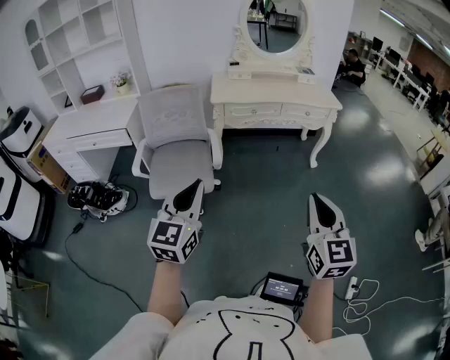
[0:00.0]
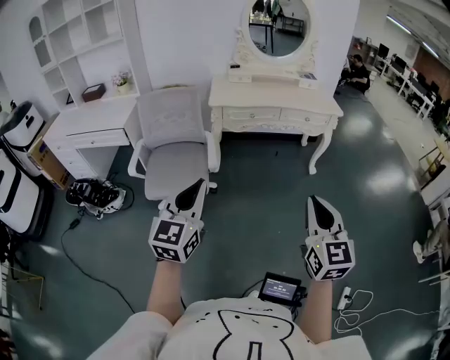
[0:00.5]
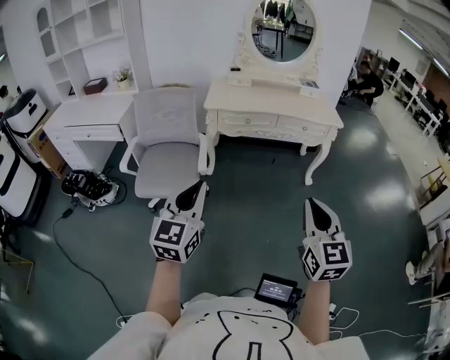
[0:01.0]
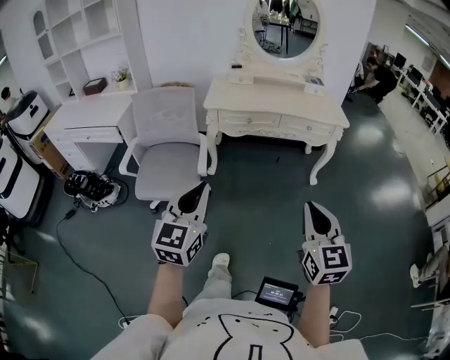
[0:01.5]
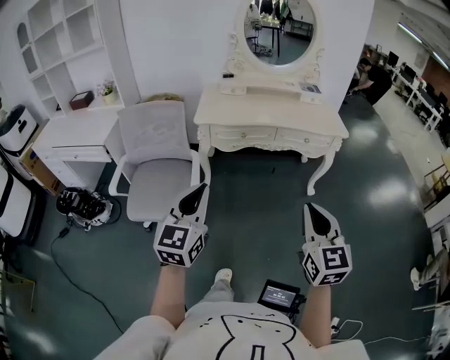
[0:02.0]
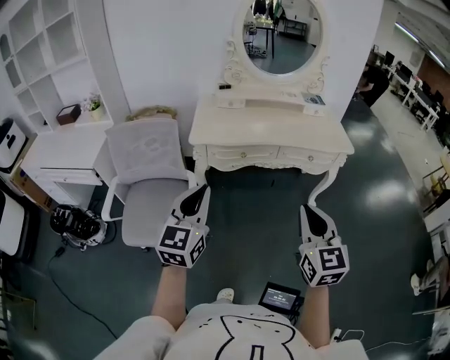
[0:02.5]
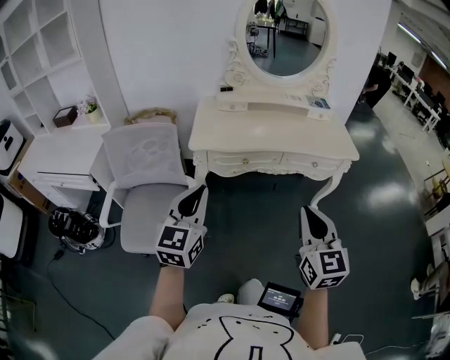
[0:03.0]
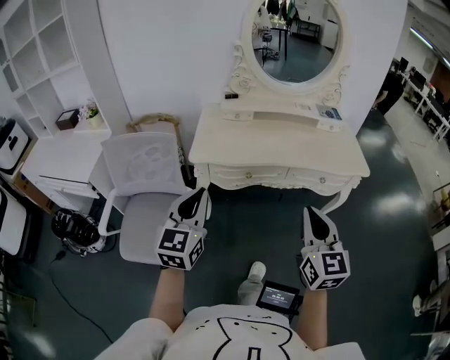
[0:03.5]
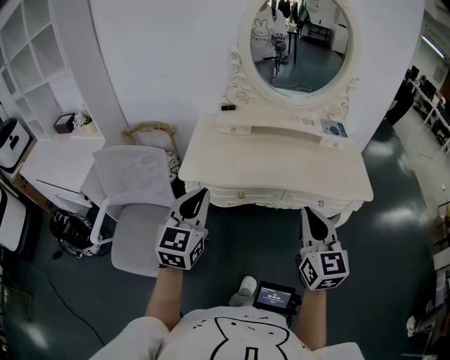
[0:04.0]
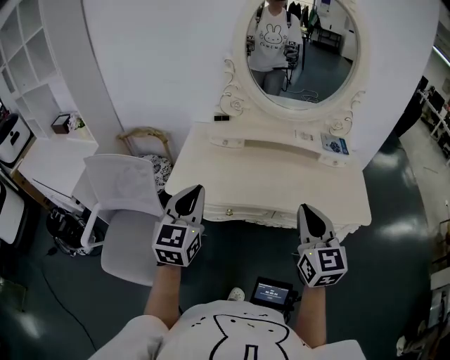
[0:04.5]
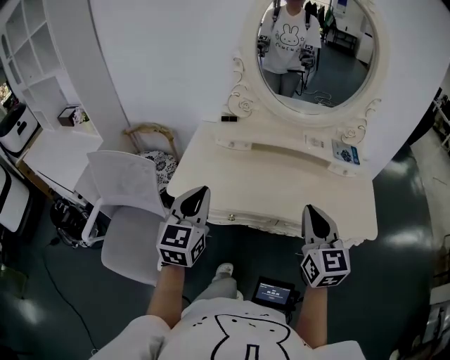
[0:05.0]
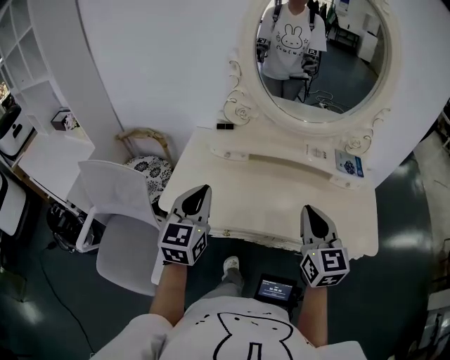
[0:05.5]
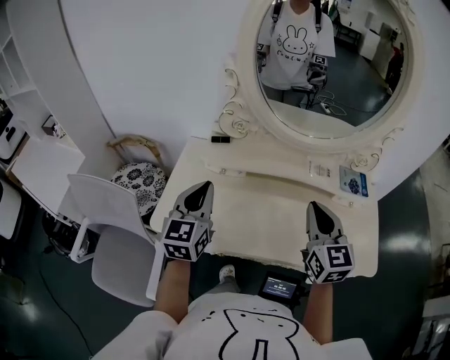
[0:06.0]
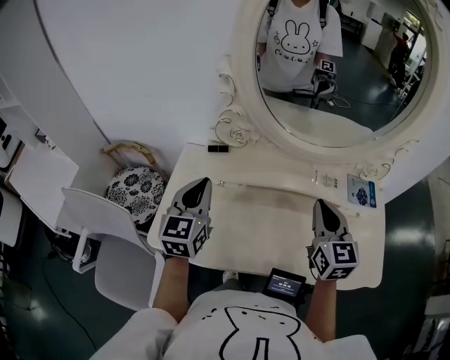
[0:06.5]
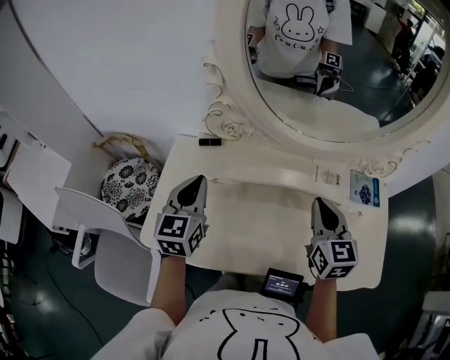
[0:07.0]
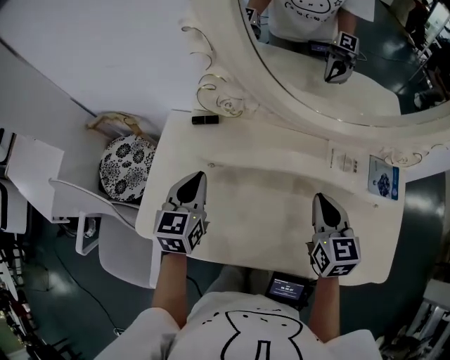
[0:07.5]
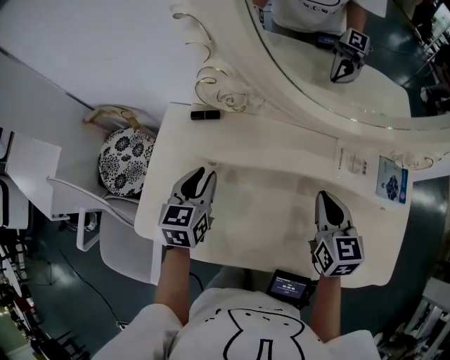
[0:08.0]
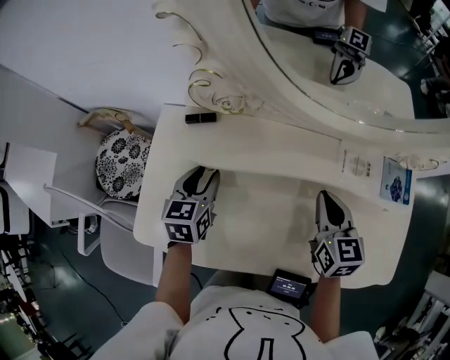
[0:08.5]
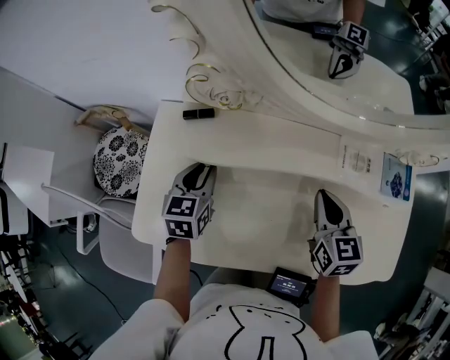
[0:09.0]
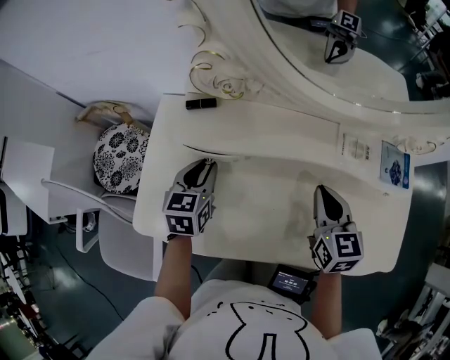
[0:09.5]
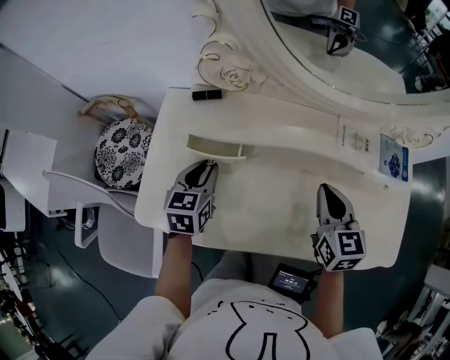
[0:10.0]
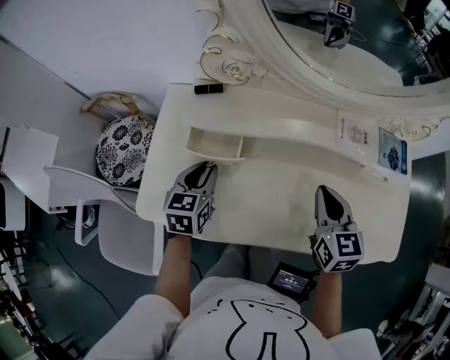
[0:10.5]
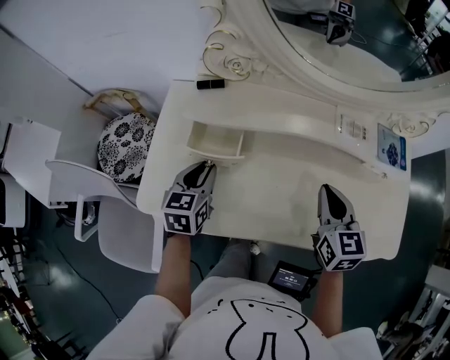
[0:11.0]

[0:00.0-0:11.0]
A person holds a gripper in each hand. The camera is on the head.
0:00.0 to 0:02.0: The two grippers go some 25 cm forward and to the right.
0:02.0 to 0:03.5: The two grippers go some 30 cm forward.
0:03.5 to 0:05.5: The two grippers go approximately 30 cm forward.
0:05.5 to 0:07.5: The grippers both shift forward and downward by roughly 25 cm.
0:07.5 to 0:09.0: The left gripper heads downward, covering some 10 cm, and opens its fingers.
0:09.0 to 0:11.0: Both grippers travel together backward, some 10 cm.

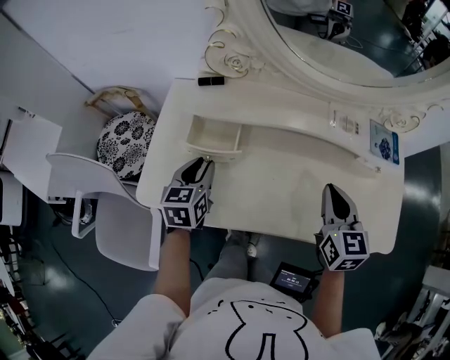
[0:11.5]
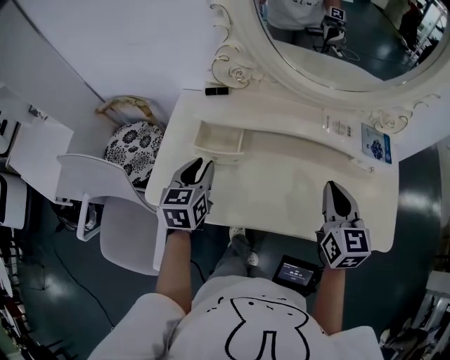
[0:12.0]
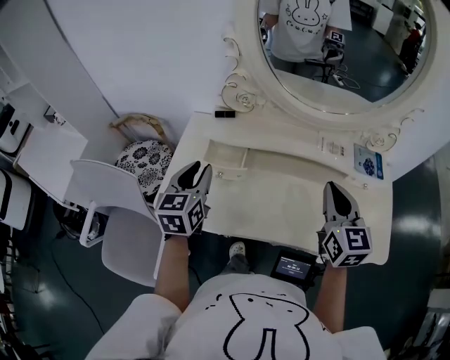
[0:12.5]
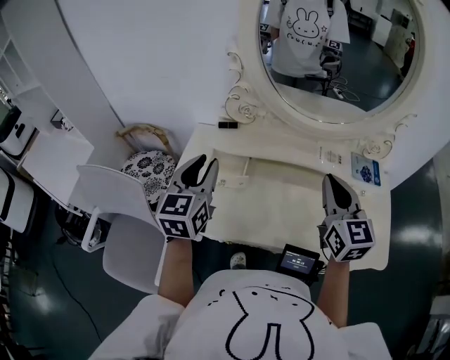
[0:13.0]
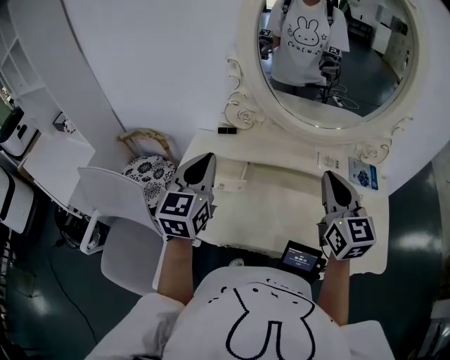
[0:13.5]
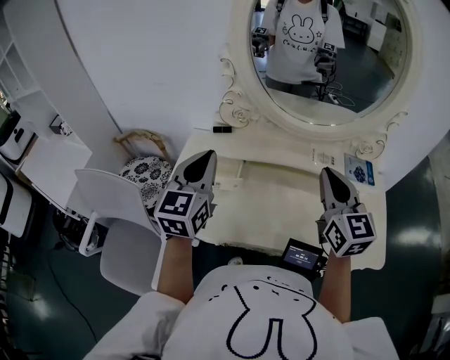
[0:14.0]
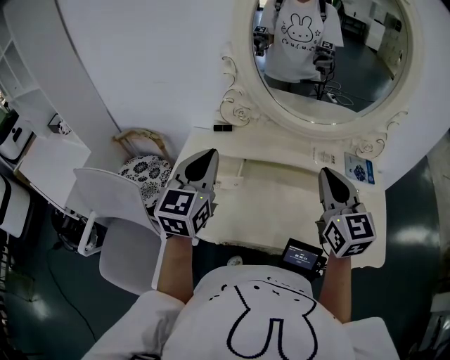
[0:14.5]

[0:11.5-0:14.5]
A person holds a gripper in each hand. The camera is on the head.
0:11.5 to 0:13.0: The two grippers go some 20 cm upward. The left gripper changes its angle by approximately 30 degrees.
0:13.0 to 0:14.5: The left gripper closes its fingers.

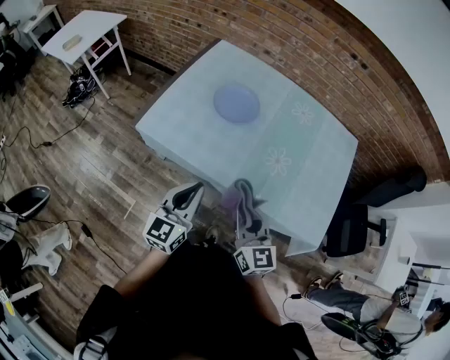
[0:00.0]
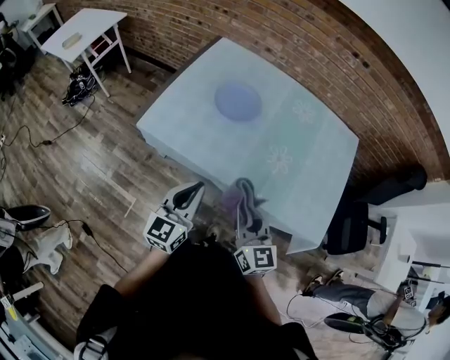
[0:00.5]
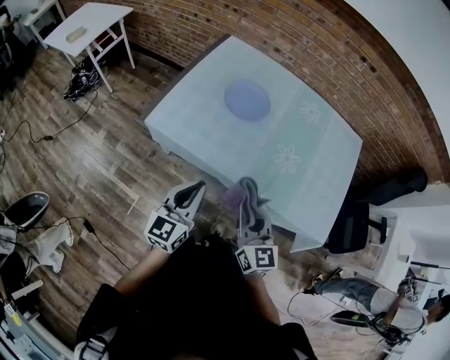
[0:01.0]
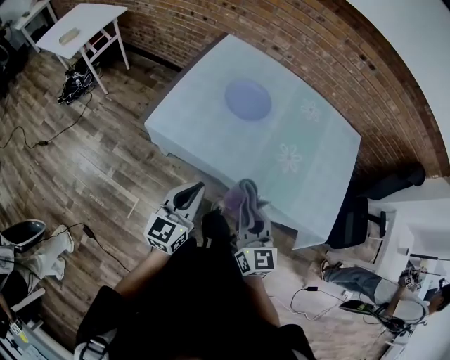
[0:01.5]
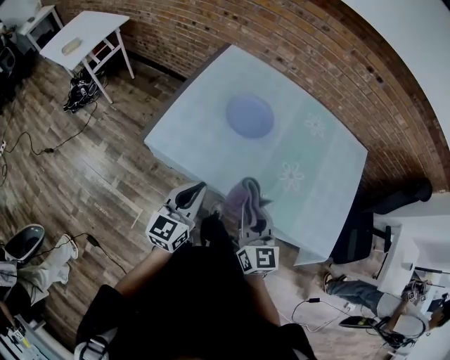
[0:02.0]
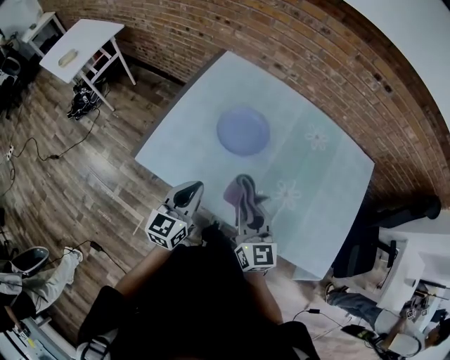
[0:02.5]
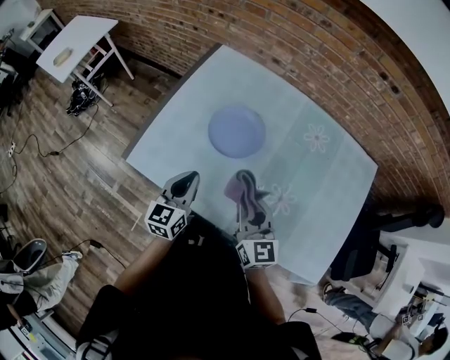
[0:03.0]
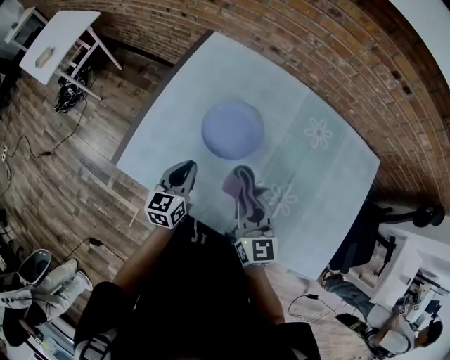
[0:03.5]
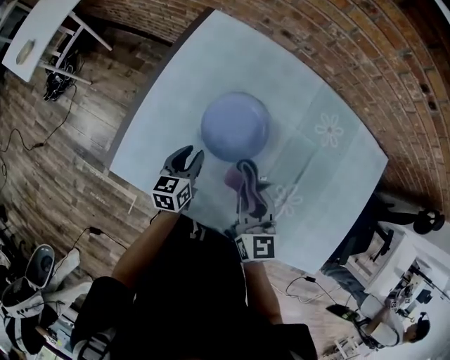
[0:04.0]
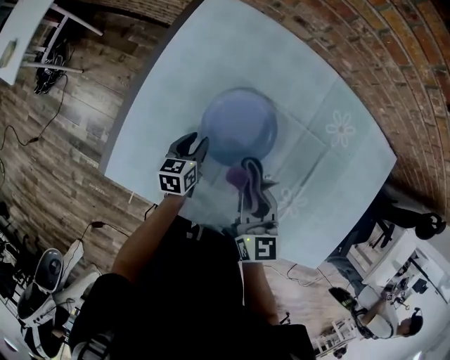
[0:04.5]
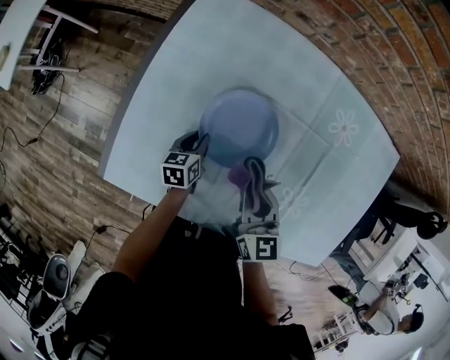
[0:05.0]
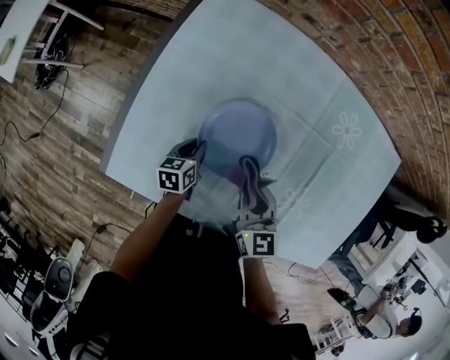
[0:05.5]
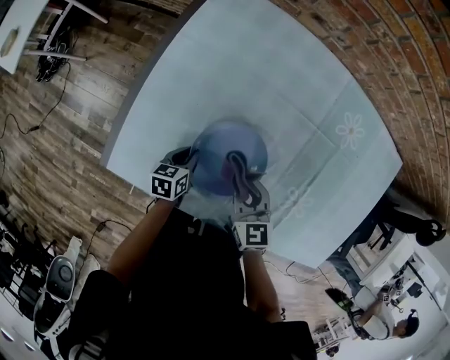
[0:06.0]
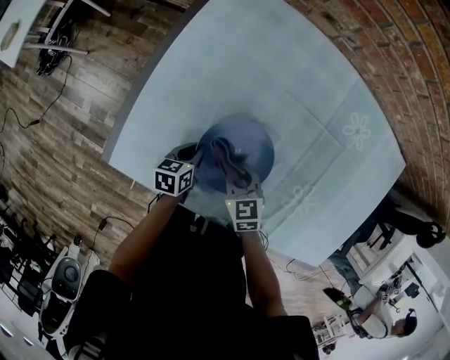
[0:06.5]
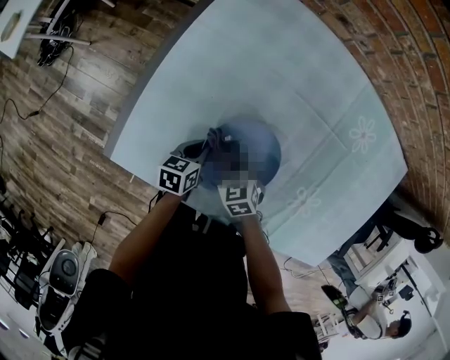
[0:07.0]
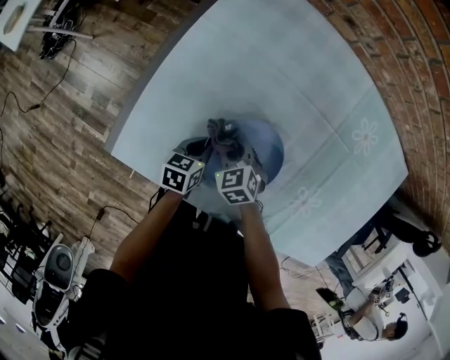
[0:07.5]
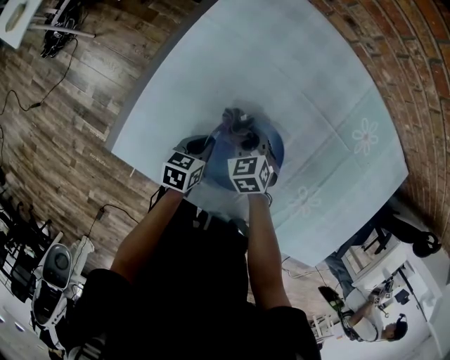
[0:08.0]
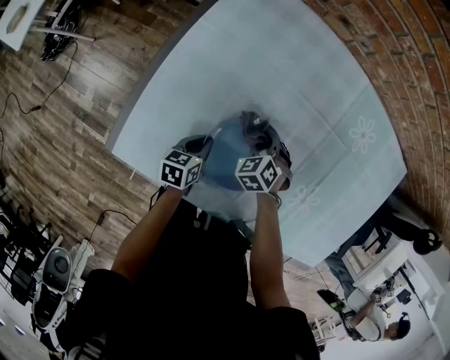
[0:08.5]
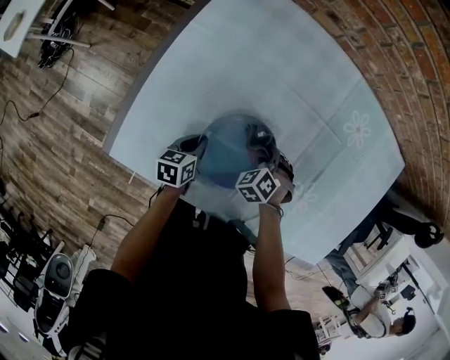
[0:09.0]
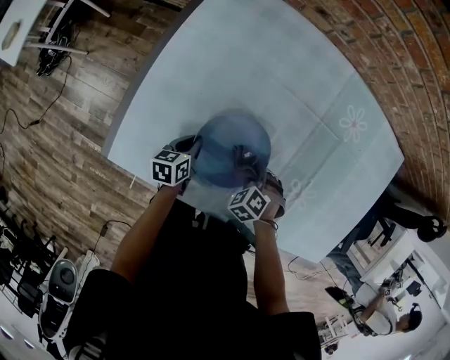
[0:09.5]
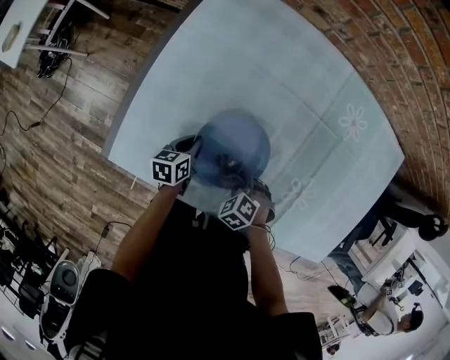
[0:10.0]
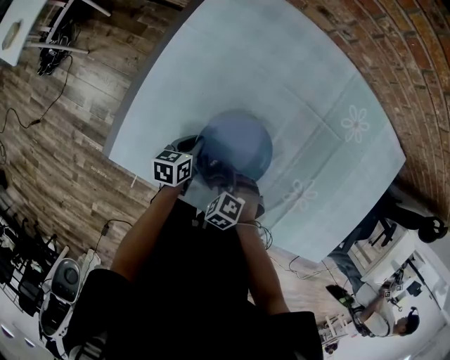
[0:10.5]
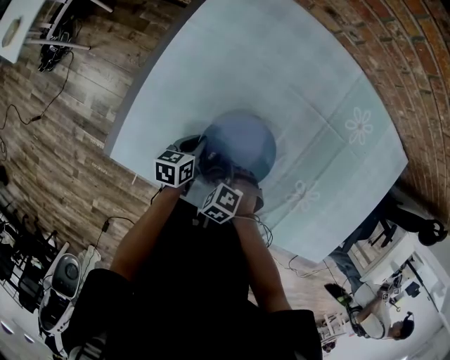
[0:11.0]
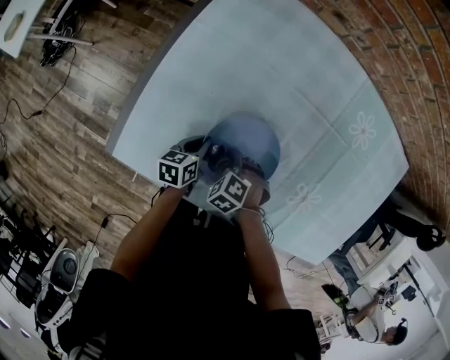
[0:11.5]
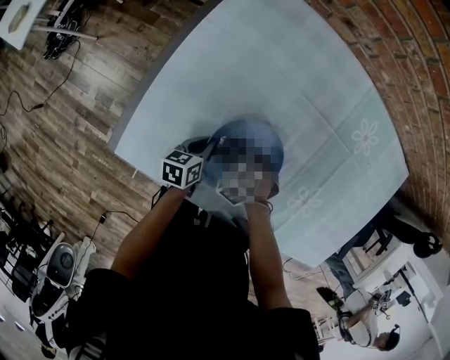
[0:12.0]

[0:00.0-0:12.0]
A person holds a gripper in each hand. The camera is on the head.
0:00.0 to 0:02.0: The left gripper goes roughly 10 cm to the left and forward, while the right gripper shifts some 10 cm forward and to the left.
0:02.0 to 0:04.0: The right gripper goes about 30 cm forward. The left gripper is displaced forward and downward by approximately 40 cm, and turns by approximately 30 degrees.
0:04.0 to 0:06.0: The left gripper heads downward, covering approximately 10 cm, and swivels approximately 20 degrees. The right gripper shifts some 10 cm downward and to the left.
0:06.0 to 0:08.0: The right gripper shifts roughly 15 cm downward, to the left and forward, and rotates roughly 40 degrees.
0:08.0 to 0:10.0: The right gripper ends up roughly 20 cm from where it was, and rotates about 30 degrees.
0:10.0 to 0:12.0: The right gripper changes place by about 10 cm.

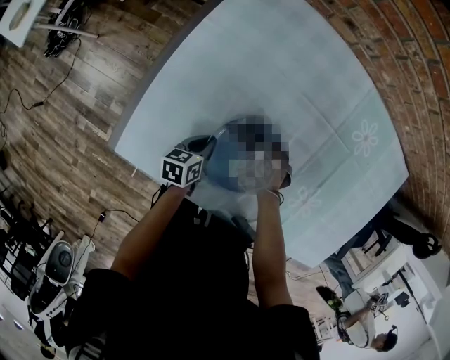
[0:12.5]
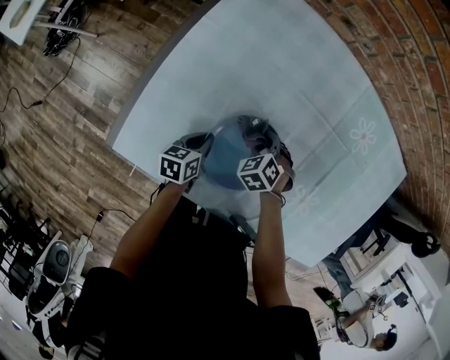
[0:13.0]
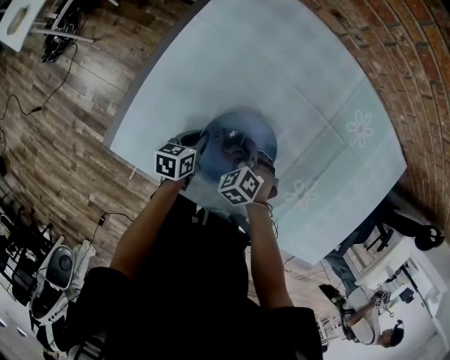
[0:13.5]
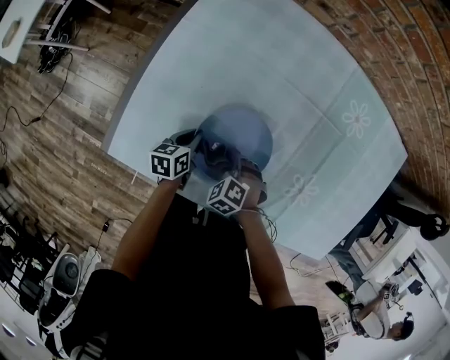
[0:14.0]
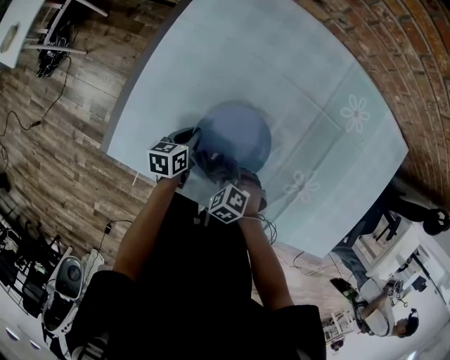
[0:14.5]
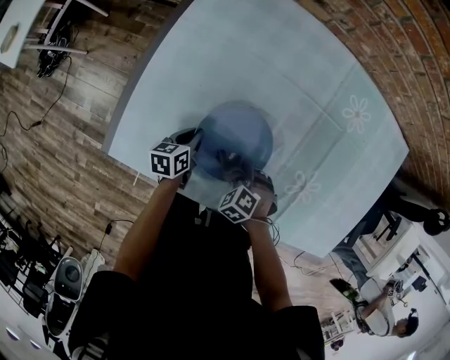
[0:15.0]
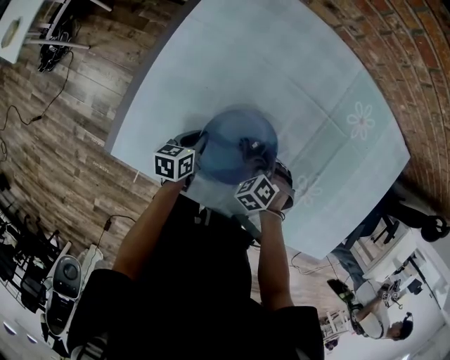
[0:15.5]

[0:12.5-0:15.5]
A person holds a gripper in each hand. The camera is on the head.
0:12.5 to 0:14.0: The right gripper moves backward, roughly 10 cm.
0:14.0 to 0:15.5: The right gripper ends up about 10 cm from where it was.
